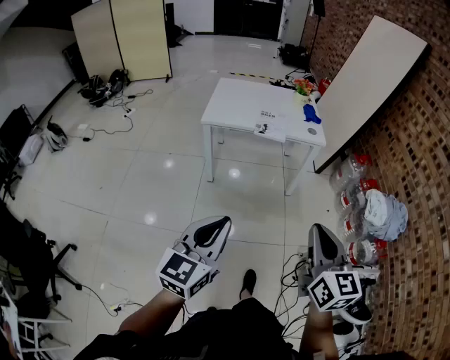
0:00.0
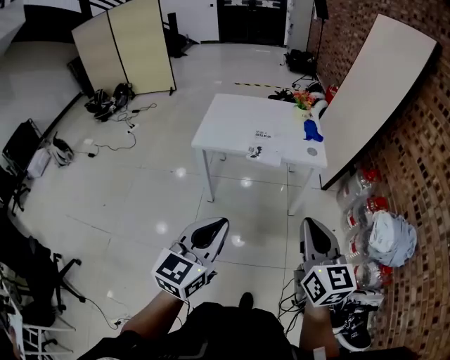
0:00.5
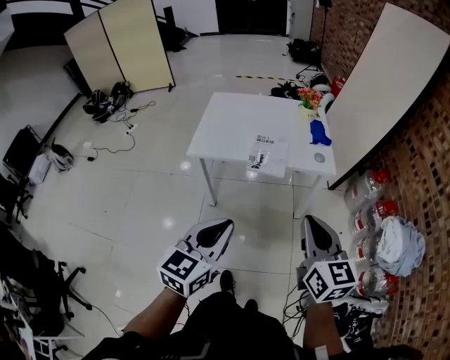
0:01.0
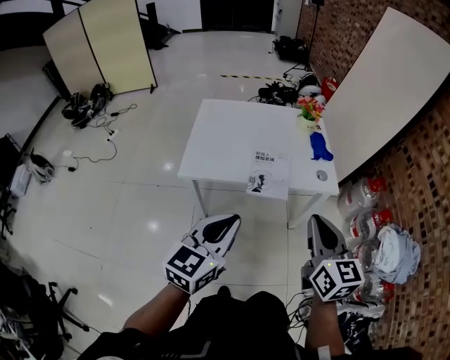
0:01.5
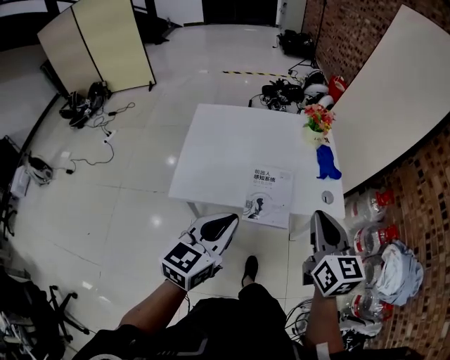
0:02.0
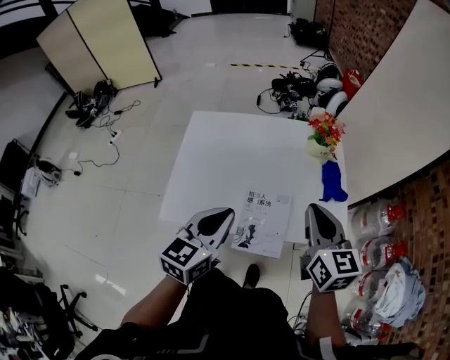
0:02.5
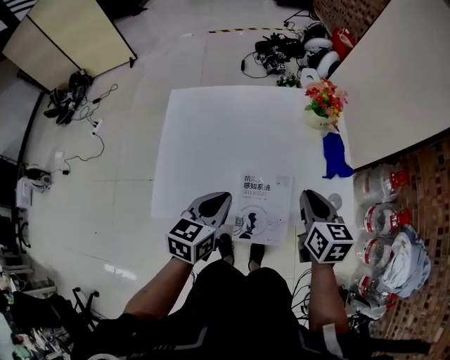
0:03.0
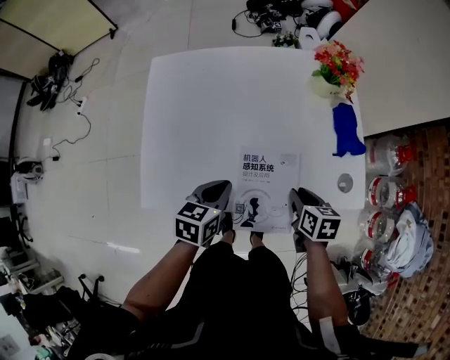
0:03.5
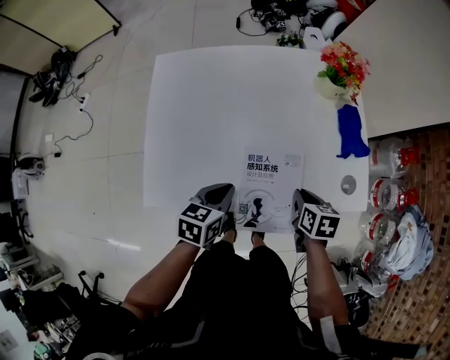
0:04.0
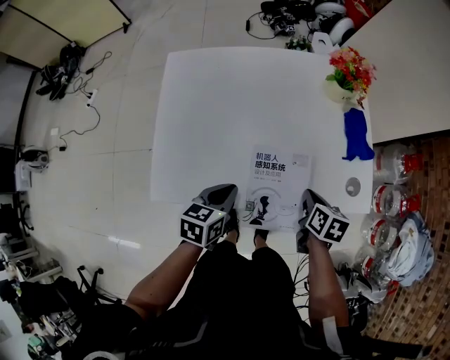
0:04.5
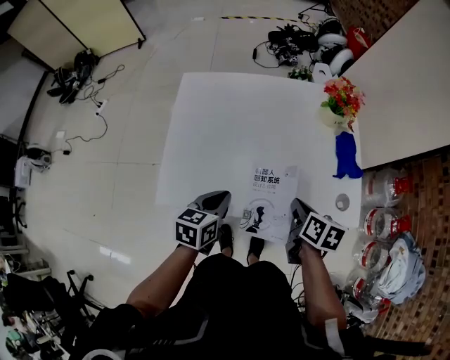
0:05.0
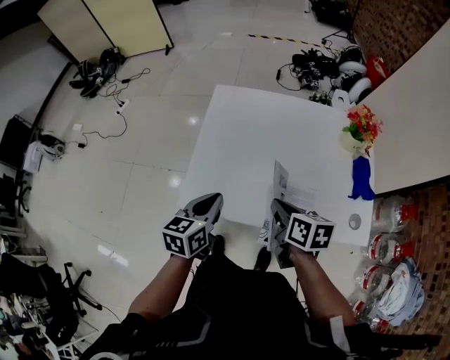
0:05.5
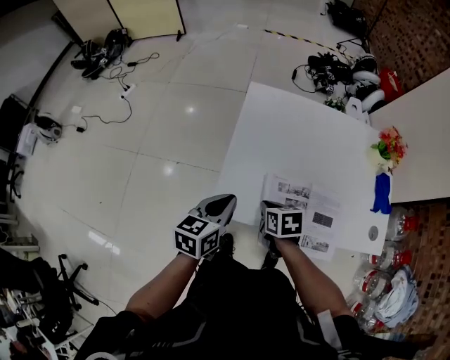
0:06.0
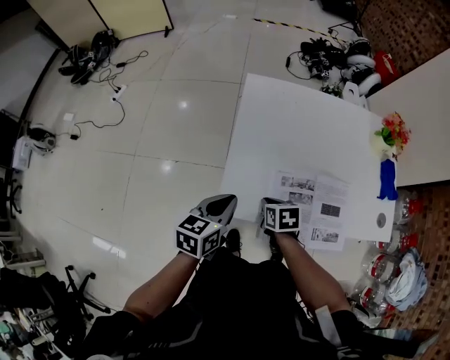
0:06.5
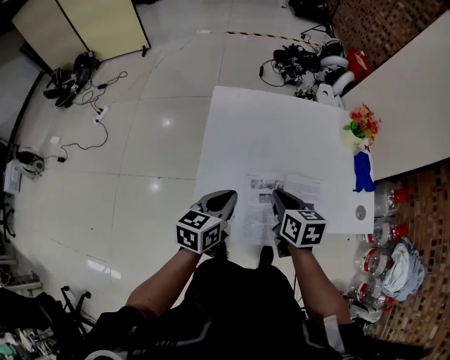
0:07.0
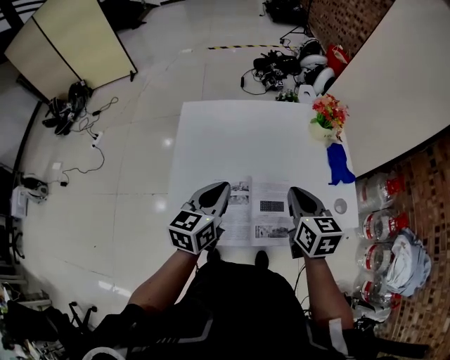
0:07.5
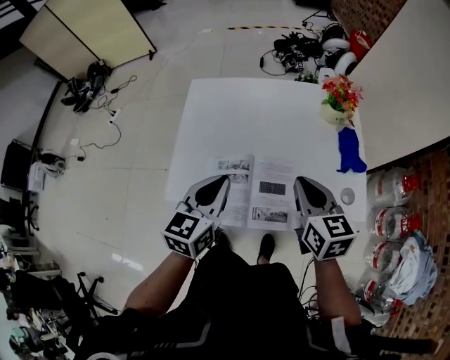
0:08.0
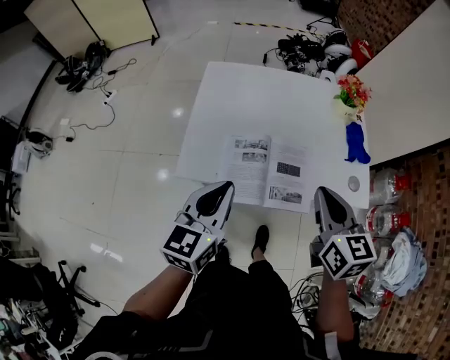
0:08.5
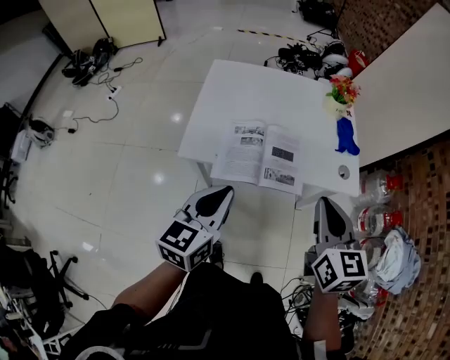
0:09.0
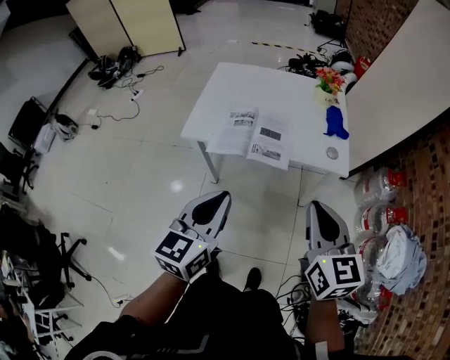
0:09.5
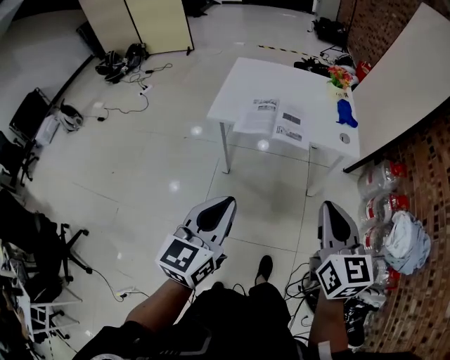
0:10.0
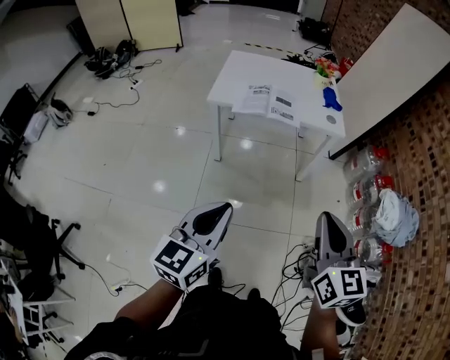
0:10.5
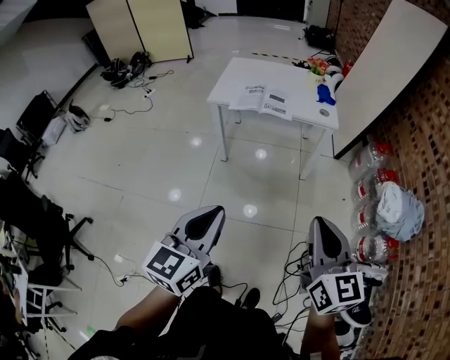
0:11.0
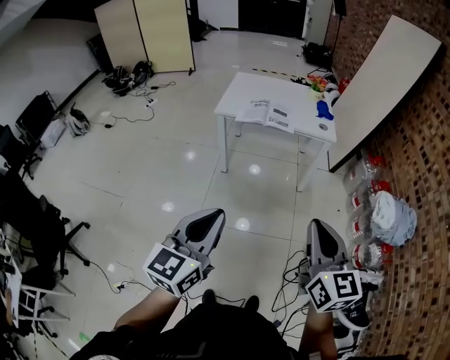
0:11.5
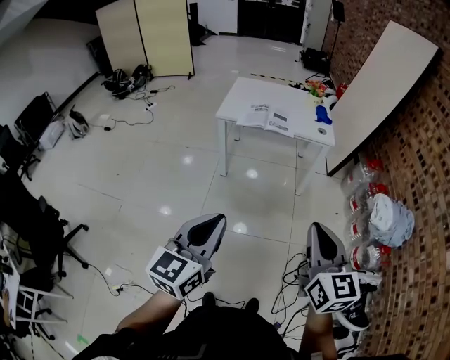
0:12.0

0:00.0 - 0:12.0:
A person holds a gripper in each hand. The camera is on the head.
0:00.0 - 0:02.0: The two grippers travel together, forward, about 60 cm.
0:02.0 - 0:04.0: The two grippers go some 35 cm downward and forward. The right gripper angles its fingers downward, by some 40 degrees, while the left gripper turns by some 30 degrees.
0:04.0 - 0:06.0: The two grippers go some 30 cm to the left. The right gripper turns by some 30 degrees. Meanwhile the left gripper turns by some 20 degrees.
0:06.0 - 0:08.0: The left gripper is displaced to the right by about 20 cm; the right gripper heads to the right and upward, covering roughly 35 cm, and points its fingers roughly 30 degrees further upward.
0:08.0 - 0:10.0: The two grippers travel together, backward, about 50 cm.
0:10.0 - 0:12.0: The two grippers go roughly 35 cm backward.

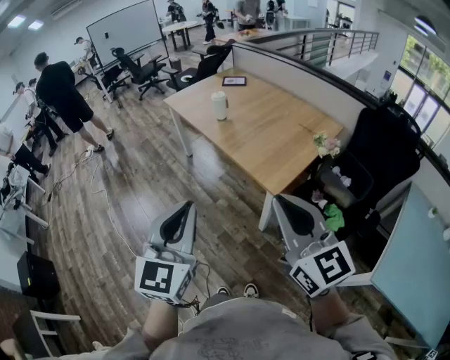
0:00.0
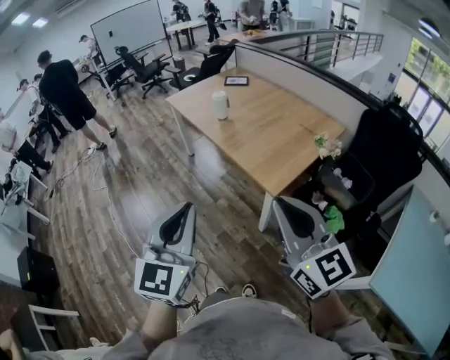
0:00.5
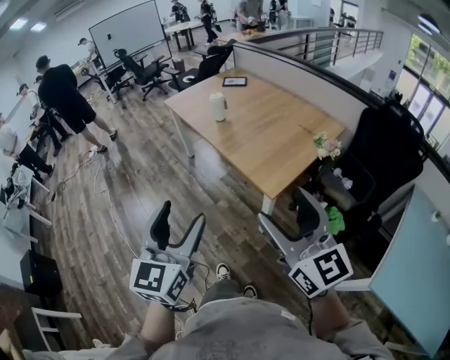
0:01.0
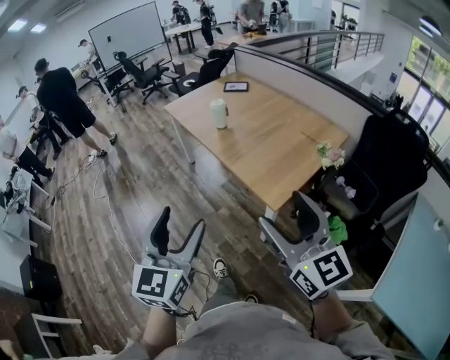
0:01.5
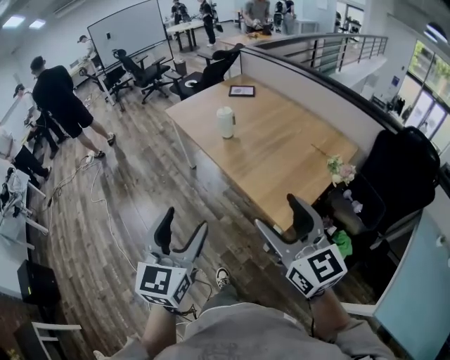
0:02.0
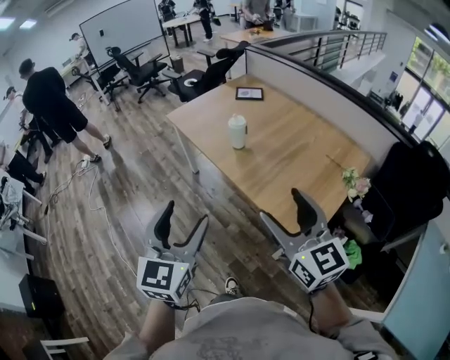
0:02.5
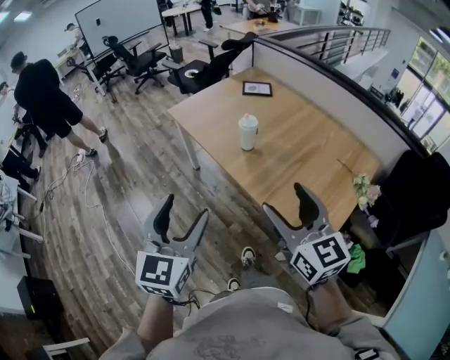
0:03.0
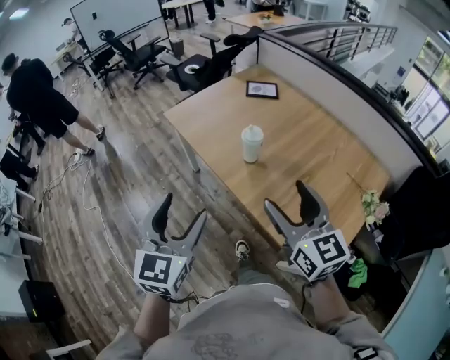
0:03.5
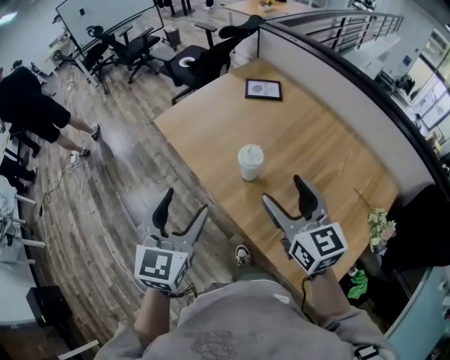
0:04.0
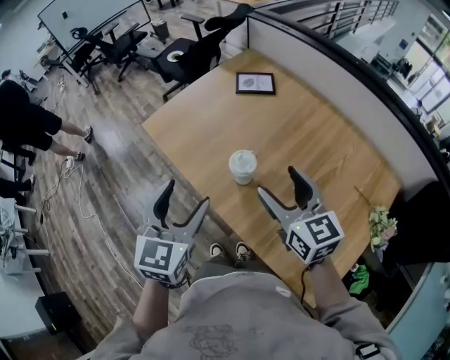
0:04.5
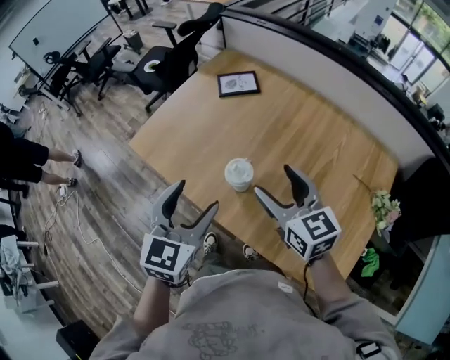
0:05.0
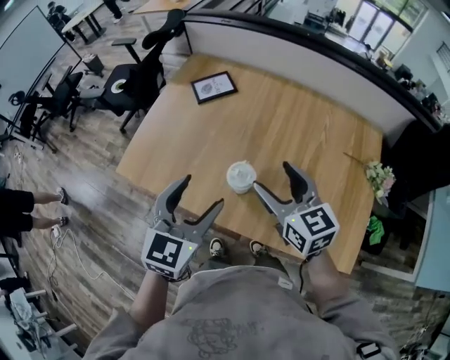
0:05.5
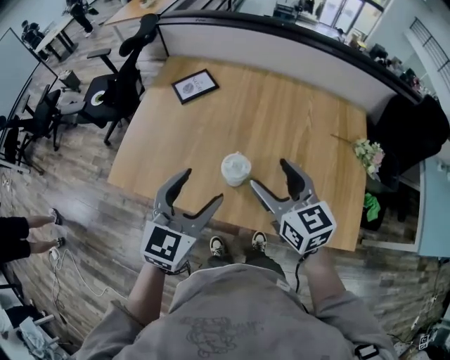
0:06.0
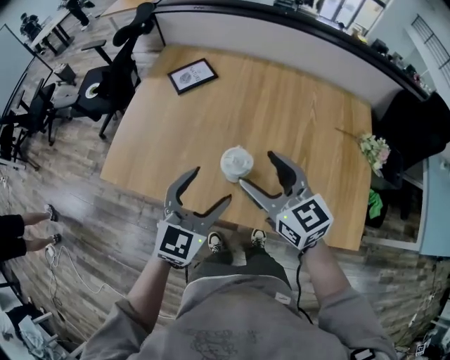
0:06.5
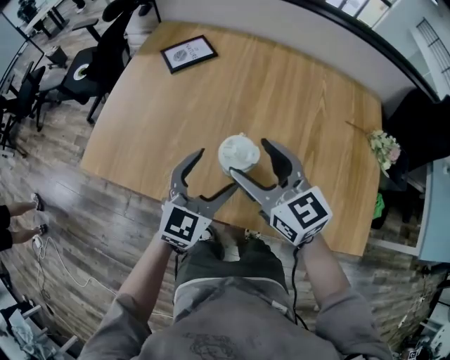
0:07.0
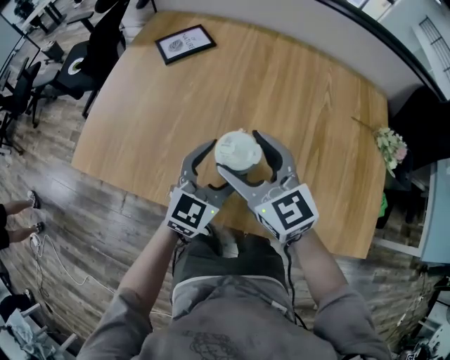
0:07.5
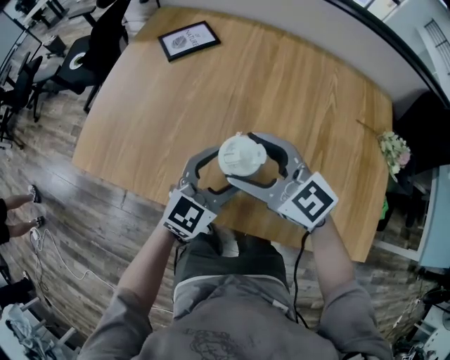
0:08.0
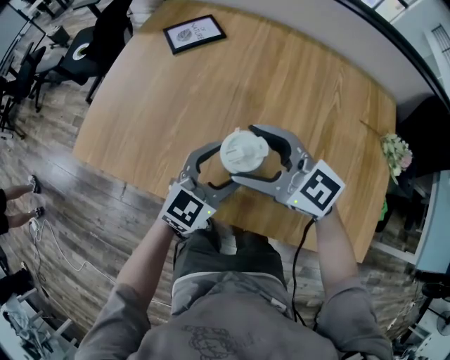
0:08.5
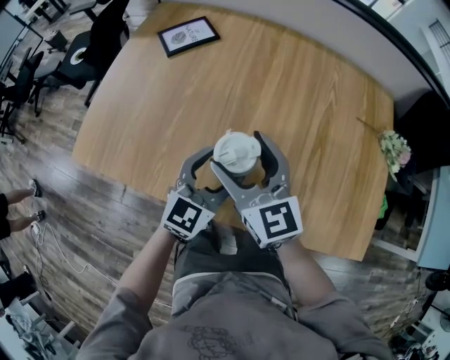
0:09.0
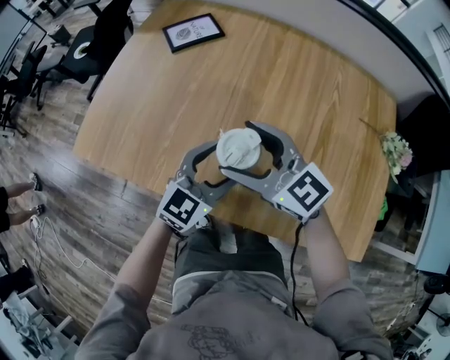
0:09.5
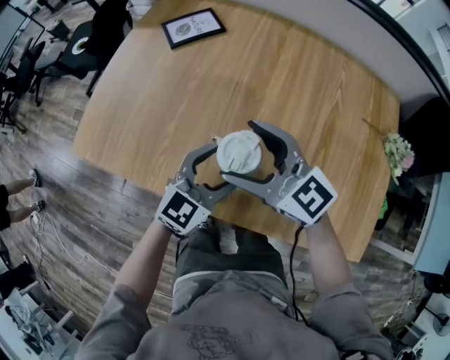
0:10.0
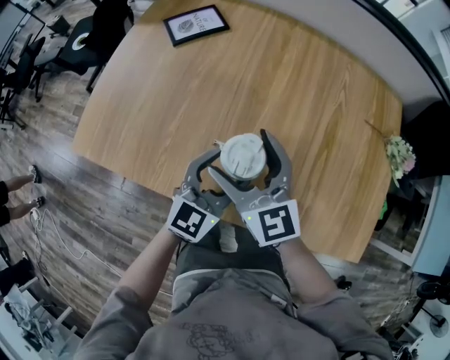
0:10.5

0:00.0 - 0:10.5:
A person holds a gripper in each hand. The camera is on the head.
0:00.0 - 0:02.0: Both grippers travel together forward, about 15 cm. The left gripper opens its fingers. Meanwhile the right gripper opens up.
0:02.0 - 0:04.0: The pair of grippers is taken forward, approximately 50 cm.
0:04.0 - 0:06.5: The left gripper ends up some 20 cm from where it was, and swivels approximately 50 degrees. The right gripper shifts by approximately 15 cm, and rotates approximately 20 degrees.
0:06.5 - 0:08.5: The left gripper moves downward and forward, approximately 15 cm. Meanwhile the right gripper is displaced downward by about 10 cm, and swivels about 30 degrees.
0:08.5 - 0:10.5: The right gripper changes its angle by about 30 degrees.

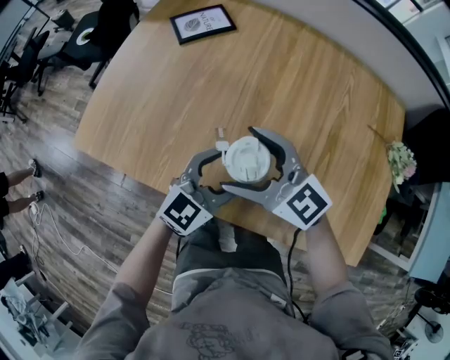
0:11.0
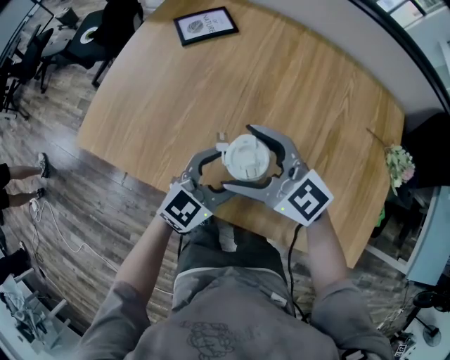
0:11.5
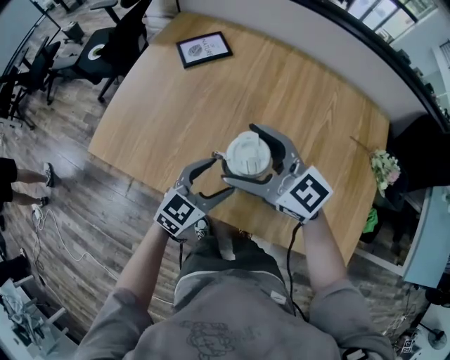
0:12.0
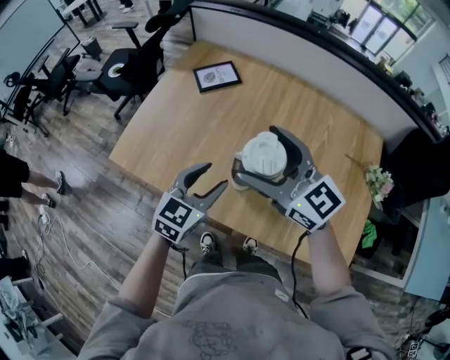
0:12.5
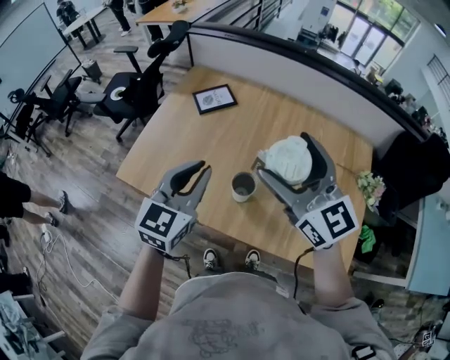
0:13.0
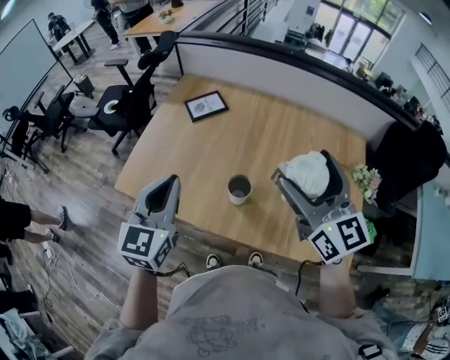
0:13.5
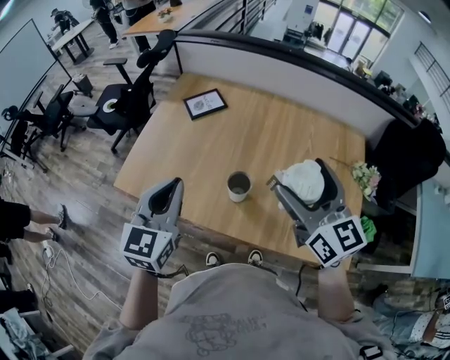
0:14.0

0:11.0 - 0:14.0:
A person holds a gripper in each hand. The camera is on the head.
0:11.0 - 0:12.5: The left gripper travels upward and to the left by some 15 cm, while the right gripper travels upward by about 20 cm.
0:12.5 - 0:14.0: The left gripper heads upward and to the left, covering roughly 15 cm, and closes its fingers. The right gripper moves to the right, backward and upward, about 15 cm, and turns by roughly 30 degrees.

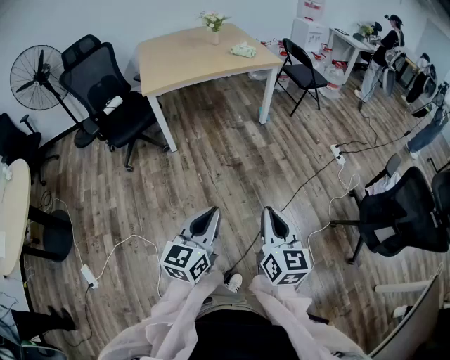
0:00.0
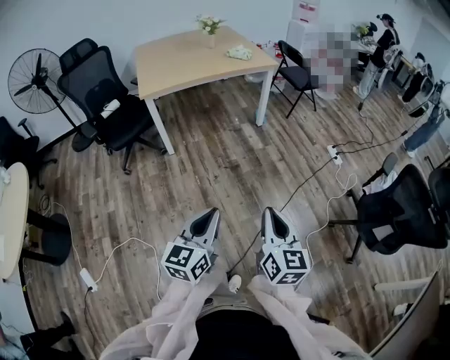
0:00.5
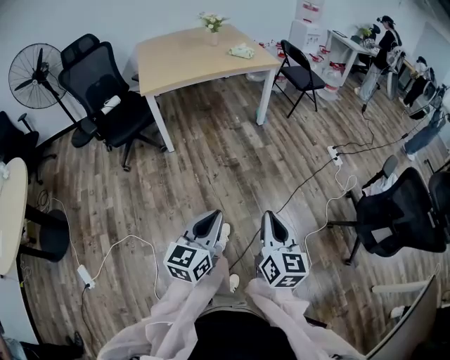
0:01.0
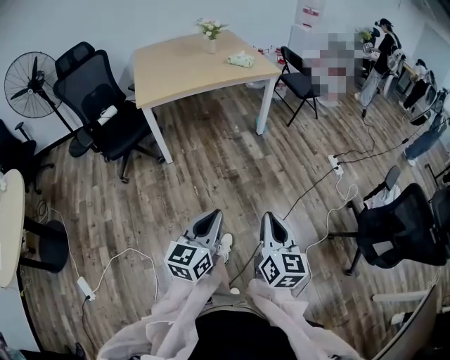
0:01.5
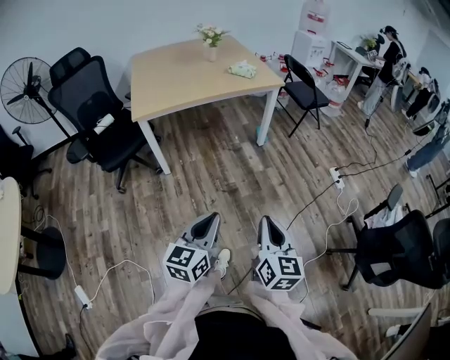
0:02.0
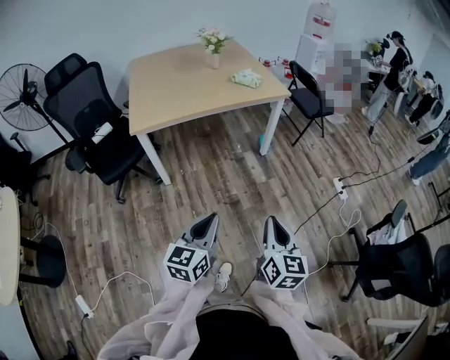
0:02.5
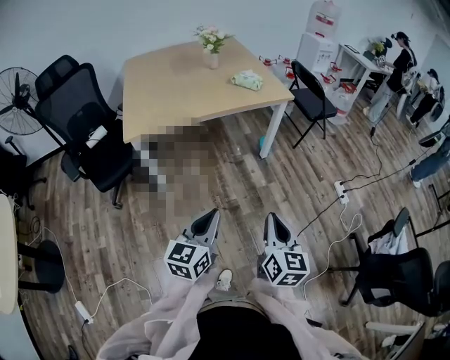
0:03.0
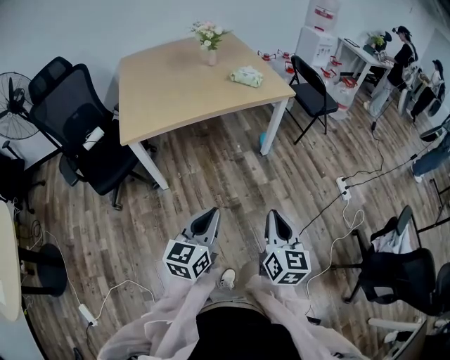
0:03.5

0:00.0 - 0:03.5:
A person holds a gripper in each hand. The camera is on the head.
0:00.0 - 0:02.0: Both grippers move forward, roughly 20 cm.
0:02.0 - 0:03.5: Both grippers travel together forward, roughly 20 cm.
